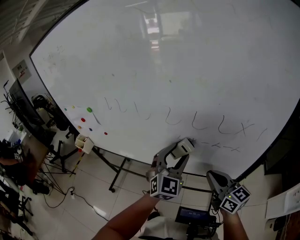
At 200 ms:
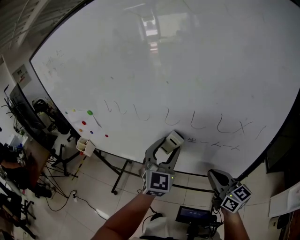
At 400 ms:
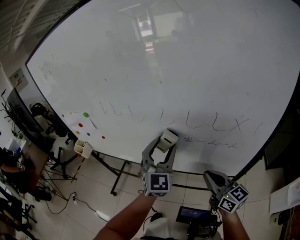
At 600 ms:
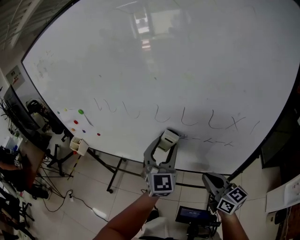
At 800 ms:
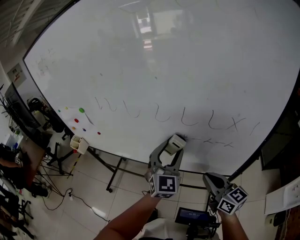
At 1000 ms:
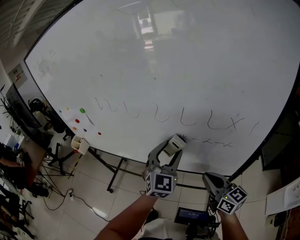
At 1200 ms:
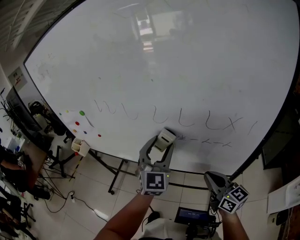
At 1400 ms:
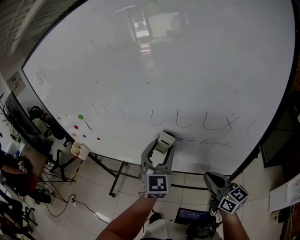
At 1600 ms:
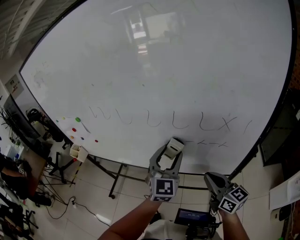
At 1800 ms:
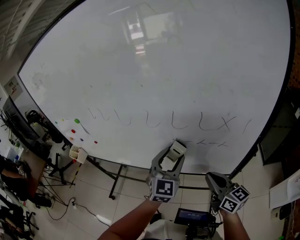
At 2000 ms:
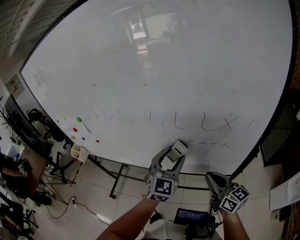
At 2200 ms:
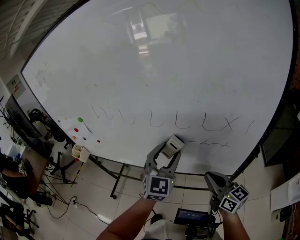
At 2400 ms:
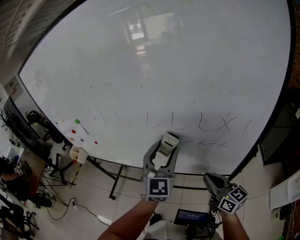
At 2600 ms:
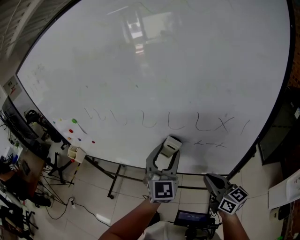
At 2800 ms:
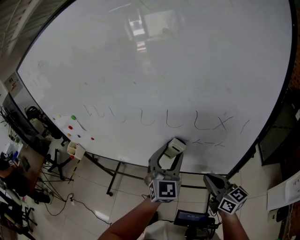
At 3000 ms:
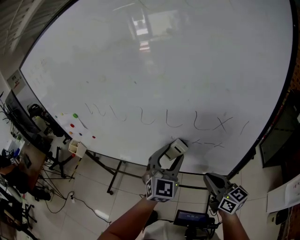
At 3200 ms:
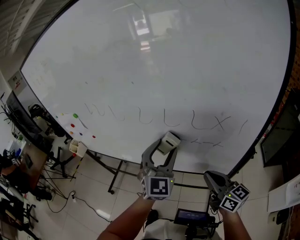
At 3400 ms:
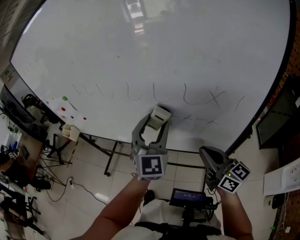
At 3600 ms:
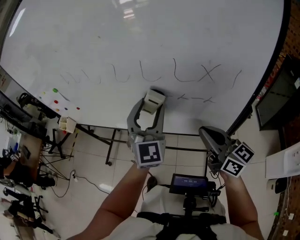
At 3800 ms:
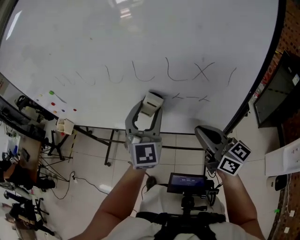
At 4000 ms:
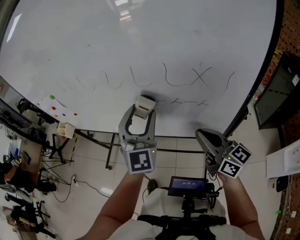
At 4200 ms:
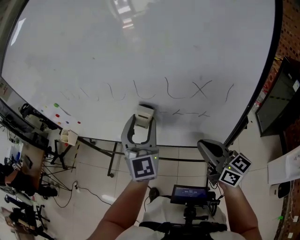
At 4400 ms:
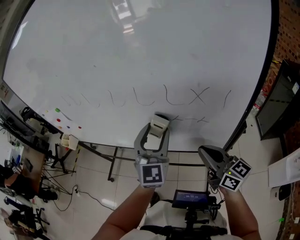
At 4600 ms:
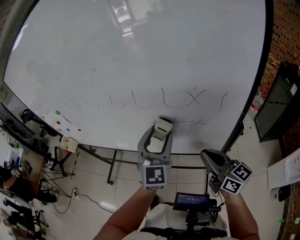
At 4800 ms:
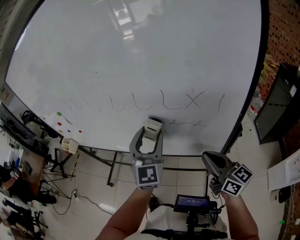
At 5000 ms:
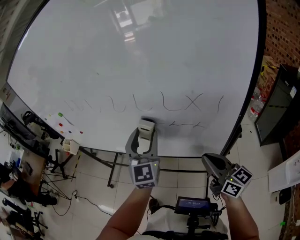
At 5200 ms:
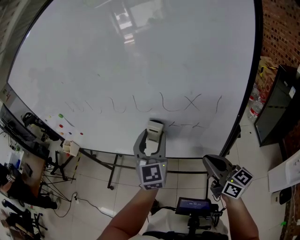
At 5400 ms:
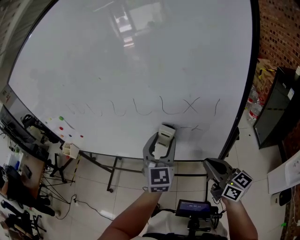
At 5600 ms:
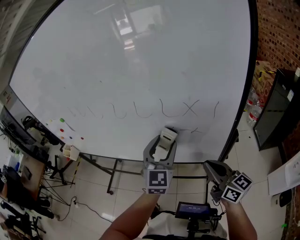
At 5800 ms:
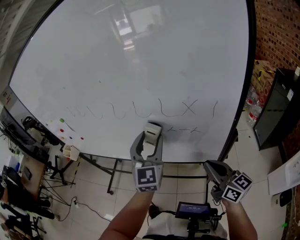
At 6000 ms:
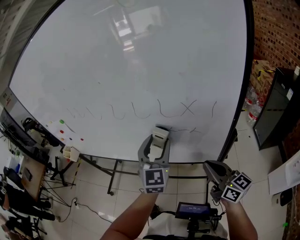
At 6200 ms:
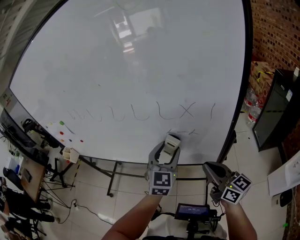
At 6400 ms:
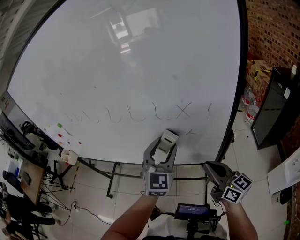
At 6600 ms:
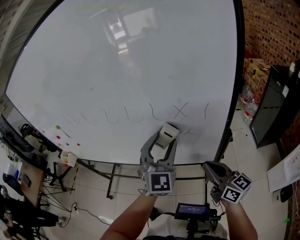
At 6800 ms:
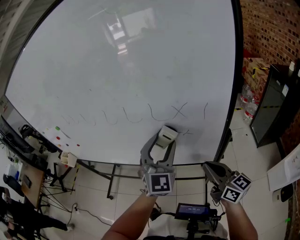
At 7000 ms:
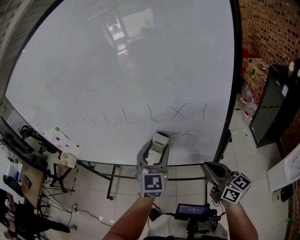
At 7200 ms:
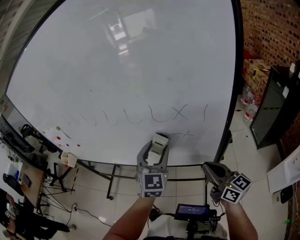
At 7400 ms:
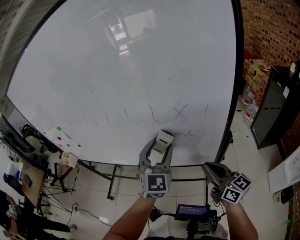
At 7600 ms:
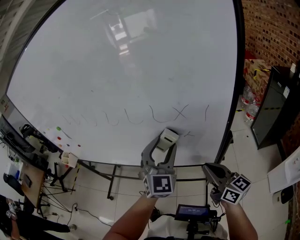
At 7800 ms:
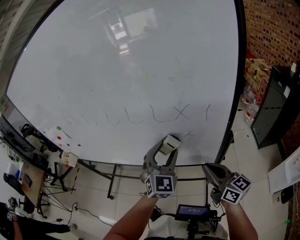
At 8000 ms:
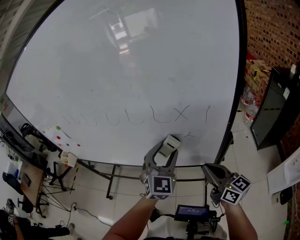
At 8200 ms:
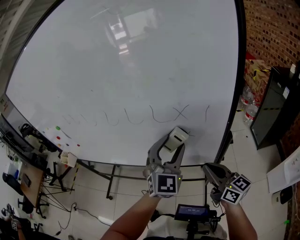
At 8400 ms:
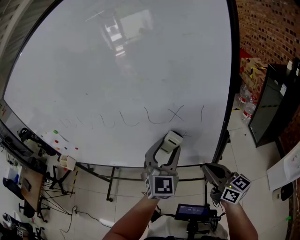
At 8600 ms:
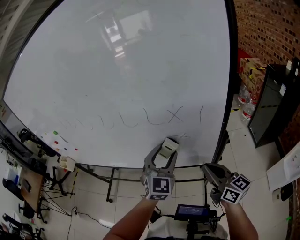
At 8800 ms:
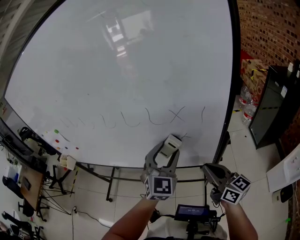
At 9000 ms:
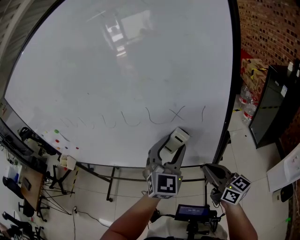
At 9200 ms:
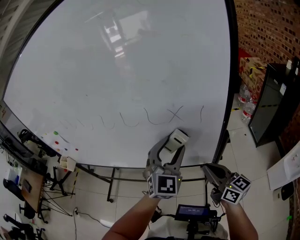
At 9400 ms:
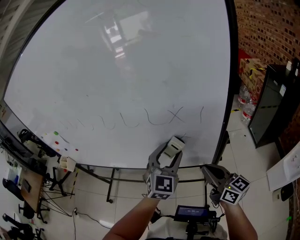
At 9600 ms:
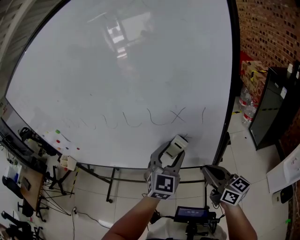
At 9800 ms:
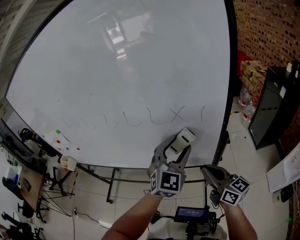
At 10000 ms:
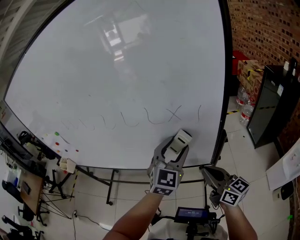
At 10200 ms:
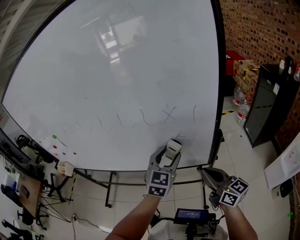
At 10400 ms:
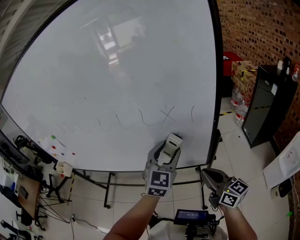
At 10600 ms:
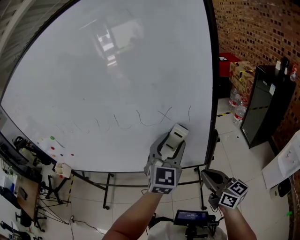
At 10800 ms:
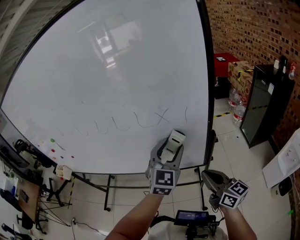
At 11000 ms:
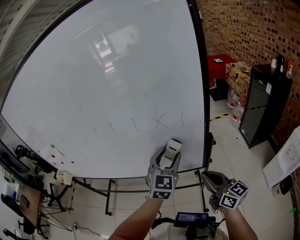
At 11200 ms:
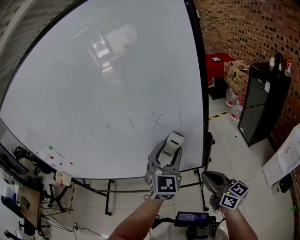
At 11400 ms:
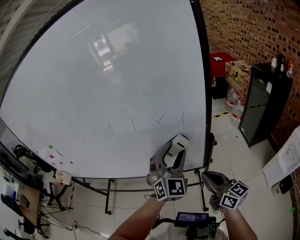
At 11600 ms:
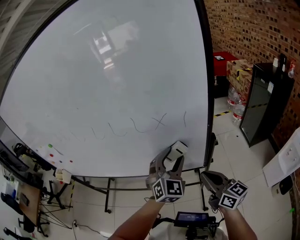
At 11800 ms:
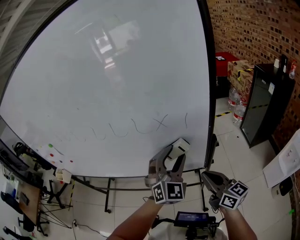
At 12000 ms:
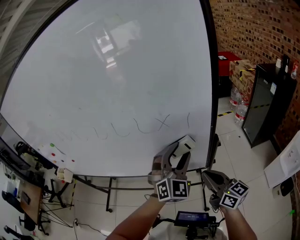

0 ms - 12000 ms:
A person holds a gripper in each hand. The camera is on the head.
0 ms - 1600 ms: There are only small adjustments of the grippers.
1600 ms - 3000 ms: The grippers make only small movements.
4400 ms - 6000 ms: The right gripper ends up about 5 cm from where it was.
6000 ms - 7600 ms: The left gripper goes up and down, roughly 10 cm each way, reversing 2 times.
7600 ms - 9000 ms: The left gripper goes up and down, some 5 cm each way, reversing 3 times.
9000 ms - 10400 ms: The left gripper goes up and down, roughly 5 cm each way, reversing 3 times.
10400 ms - 12000 ms: The left gripper swings up and down, roughly 10 cm each way, with 4 reversals, and rotates some 30 degrees.

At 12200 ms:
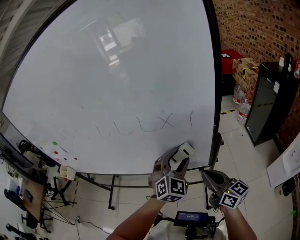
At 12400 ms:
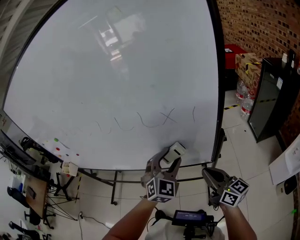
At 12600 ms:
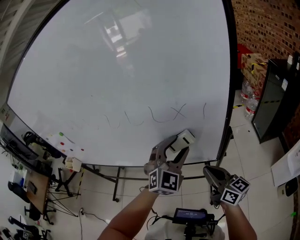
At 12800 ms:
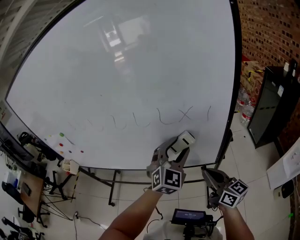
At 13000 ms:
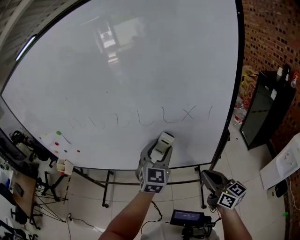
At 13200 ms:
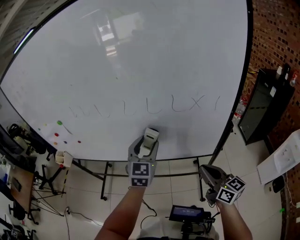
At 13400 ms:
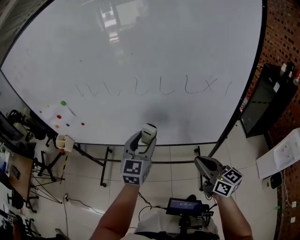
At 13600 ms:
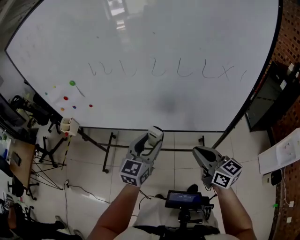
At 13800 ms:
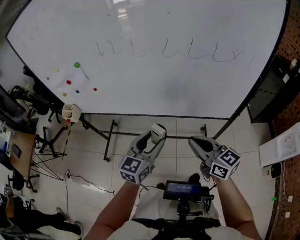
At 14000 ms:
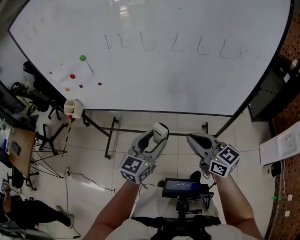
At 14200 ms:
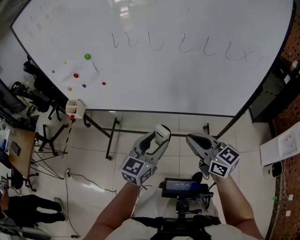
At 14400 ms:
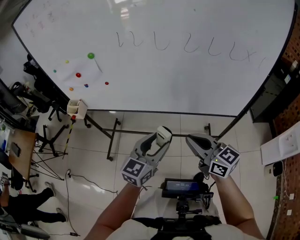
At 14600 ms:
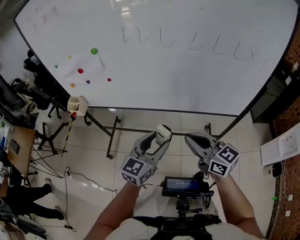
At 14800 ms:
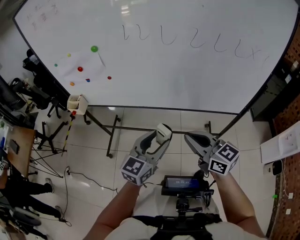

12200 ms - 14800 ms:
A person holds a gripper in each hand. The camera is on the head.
12200 ms - 13400 ms: The right gripper heads to the left, covering roughly 20 cm. The left gripper goes approximately 30 cm to the left, and swivels roughly 30 degrees.
13400 ms - 14800 ms: The left gripper shifts some 25 cm to the left, backward and downward, while the right gripper moves to the left, some 25 cm.

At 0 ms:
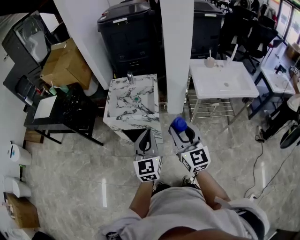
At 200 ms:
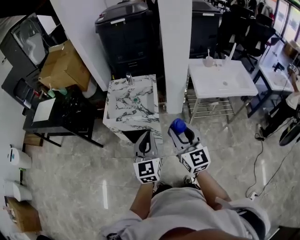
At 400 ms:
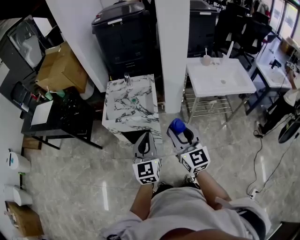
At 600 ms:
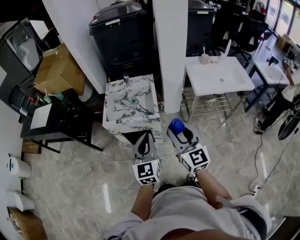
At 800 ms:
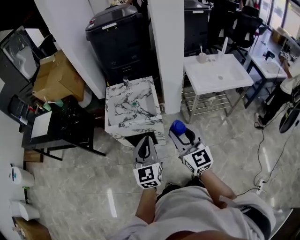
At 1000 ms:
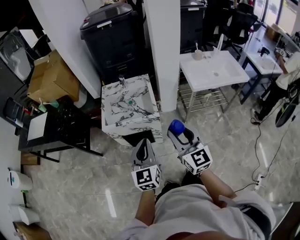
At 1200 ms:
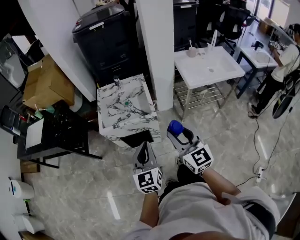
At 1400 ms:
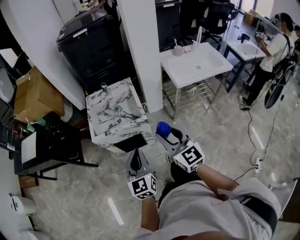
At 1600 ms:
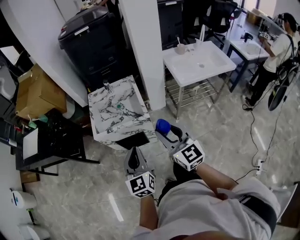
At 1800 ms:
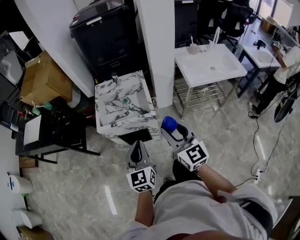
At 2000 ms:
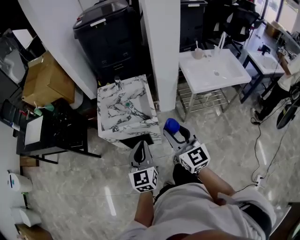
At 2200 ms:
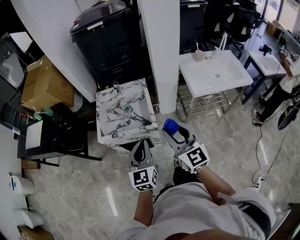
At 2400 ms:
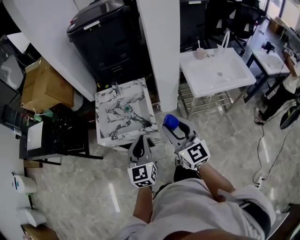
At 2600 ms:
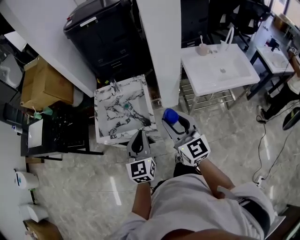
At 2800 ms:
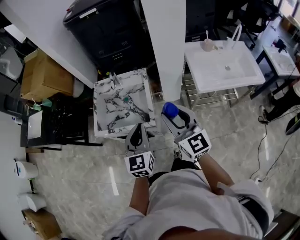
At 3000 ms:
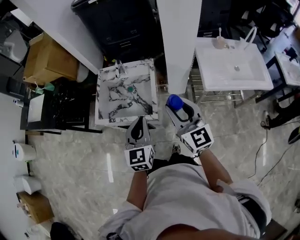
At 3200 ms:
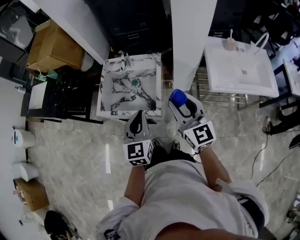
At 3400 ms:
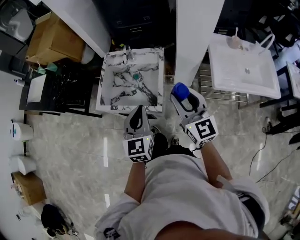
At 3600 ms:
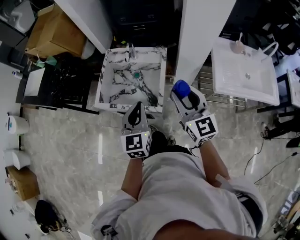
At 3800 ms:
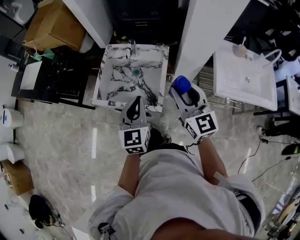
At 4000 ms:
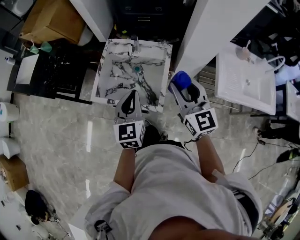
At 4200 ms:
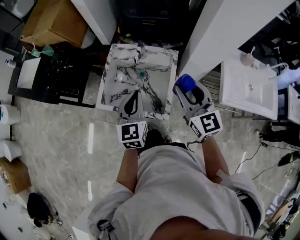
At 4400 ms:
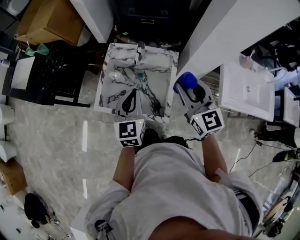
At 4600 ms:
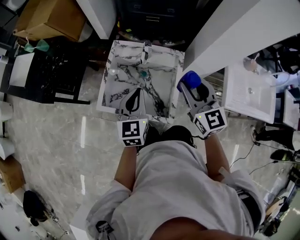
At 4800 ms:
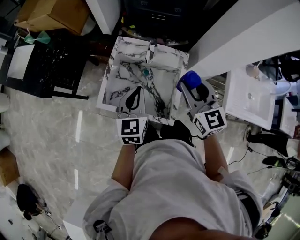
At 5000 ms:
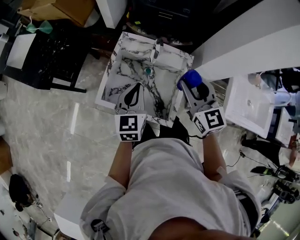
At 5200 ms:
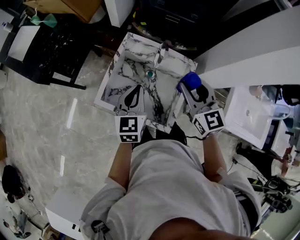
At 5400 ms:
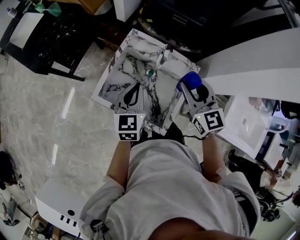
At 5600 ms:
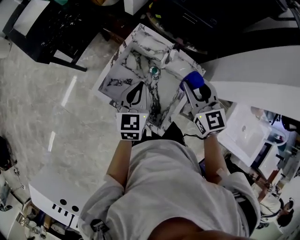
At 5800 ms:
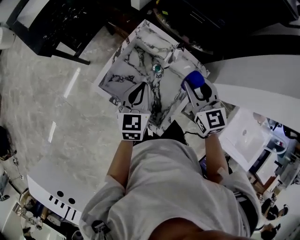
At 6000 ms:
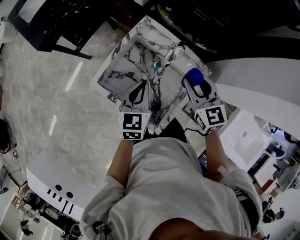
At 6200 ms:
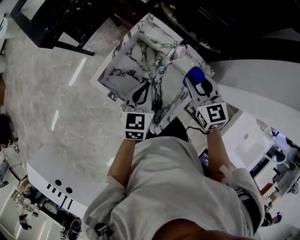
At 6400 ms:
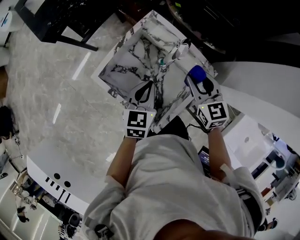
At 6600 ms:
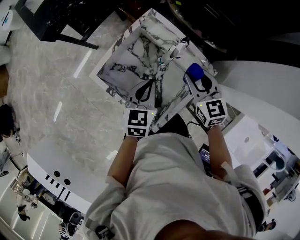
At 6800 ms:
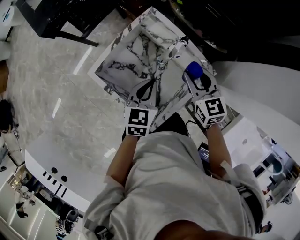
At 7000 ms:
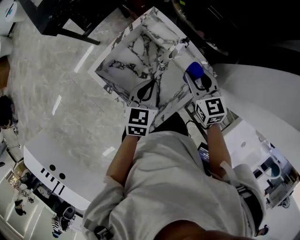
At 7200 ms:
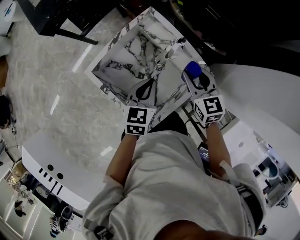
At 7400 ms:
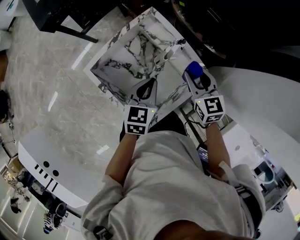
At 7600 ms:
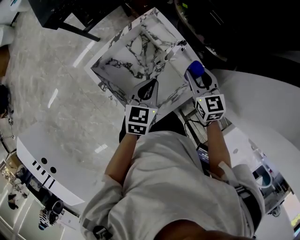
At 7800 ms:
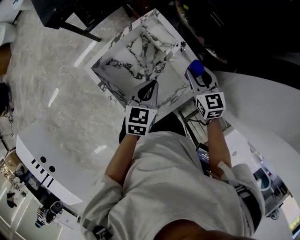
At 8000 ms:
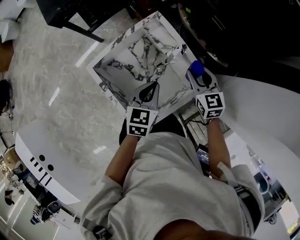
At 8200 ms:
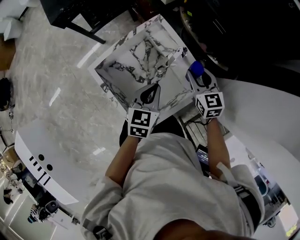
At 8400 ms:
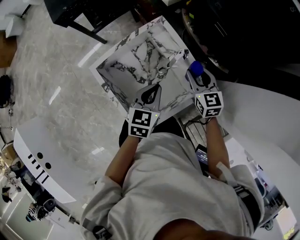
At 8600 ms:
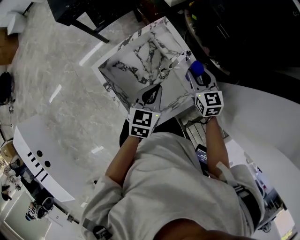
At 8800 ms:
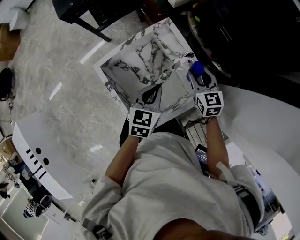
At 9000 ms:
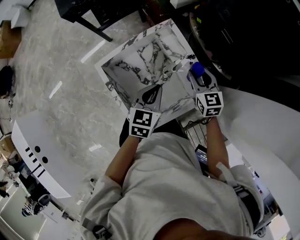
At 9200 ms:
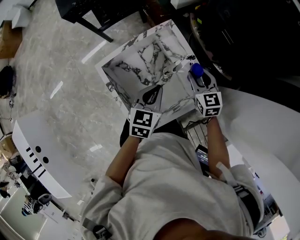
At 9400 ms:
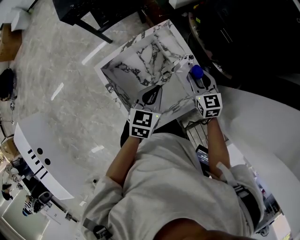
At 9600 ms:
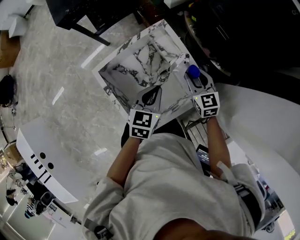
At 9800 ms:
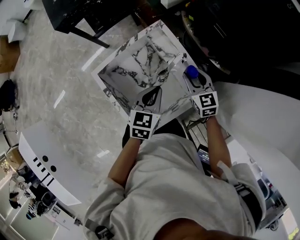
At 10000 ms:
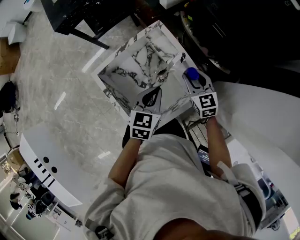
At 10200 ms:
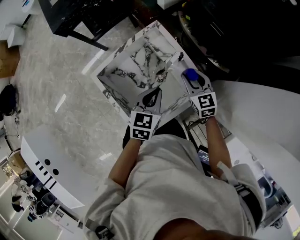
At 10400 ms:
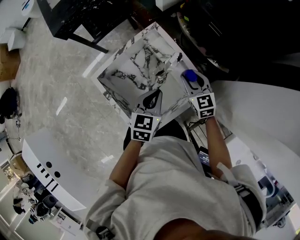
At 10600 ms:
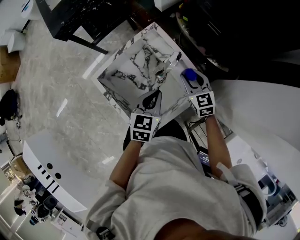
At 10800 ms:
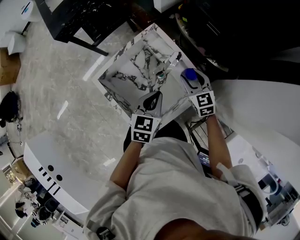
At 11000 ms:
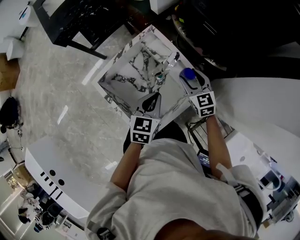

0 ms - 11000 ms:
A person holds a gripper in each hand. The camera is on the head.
0 ms - 1600 ms: Both grippers move to the left, some 10 cm.
1600 ms - 3200 ms: Both grippers travel together forward and to the right, about 25 cm.
3200 ms - 4800 ms: The two grippers go roughly 25 cm forward and to the left.
4800 ms - 6200 ms: The right gripper shifts about 20 cm downward and forward, and swivels approximately 30 degrees. Meanwhile the left gripper heads downward, covering some 10 cm, and turns by about 20 degrees.
6200 ms - 7800 ms: The right gripper travels downward and to the right by approximately 10 cm, while the left gripper is displaced to the right by approximately 5 cm.
7800 ms - 11000 ms: The grippers stay close to where they were, moving slightly.
